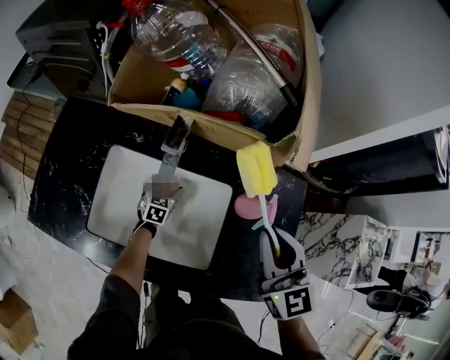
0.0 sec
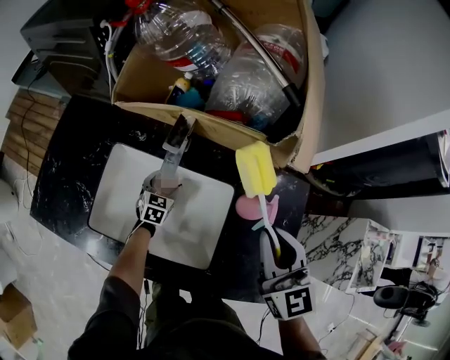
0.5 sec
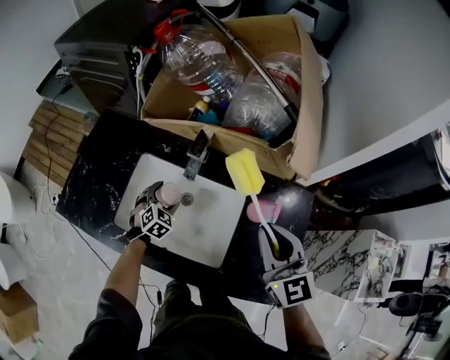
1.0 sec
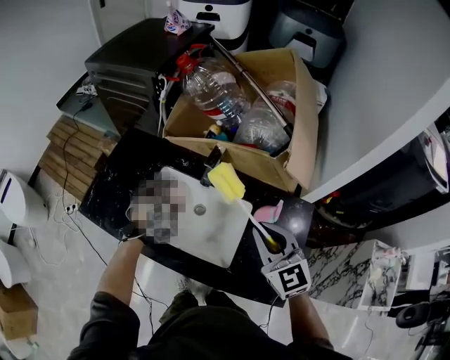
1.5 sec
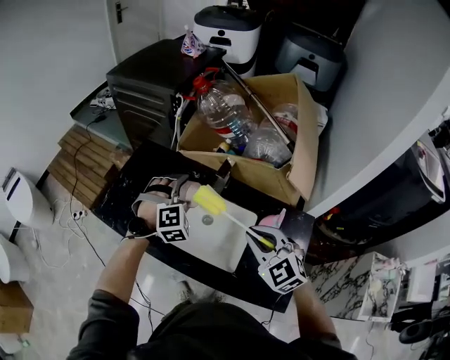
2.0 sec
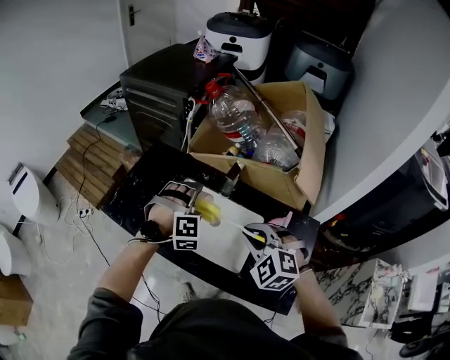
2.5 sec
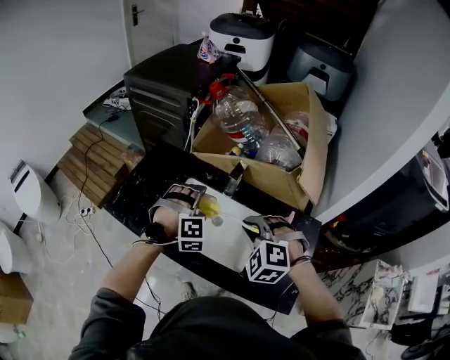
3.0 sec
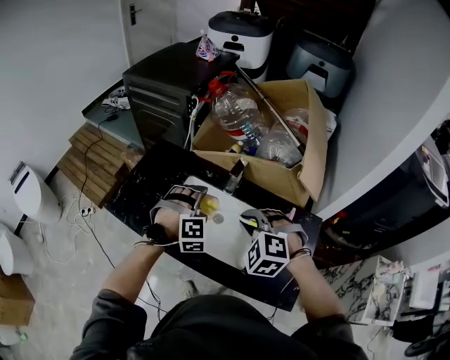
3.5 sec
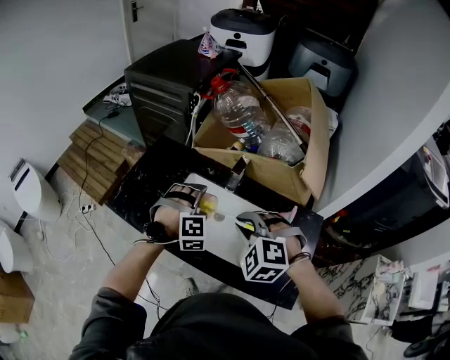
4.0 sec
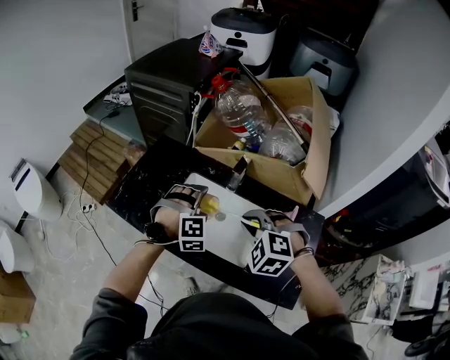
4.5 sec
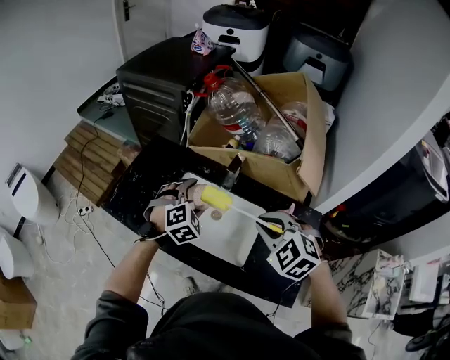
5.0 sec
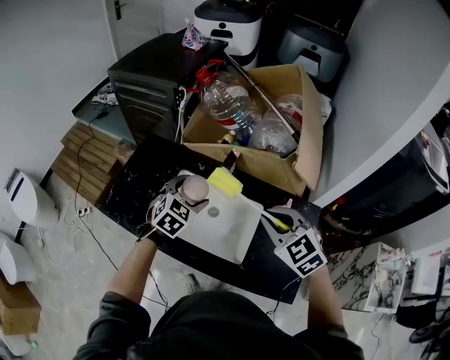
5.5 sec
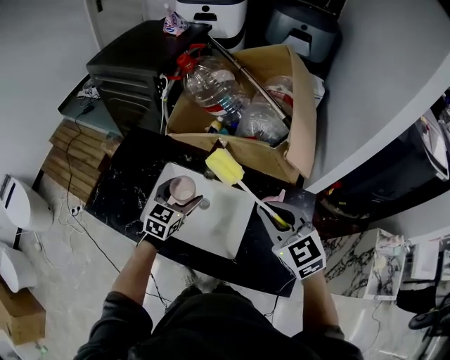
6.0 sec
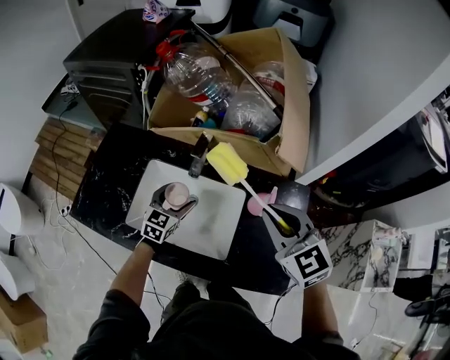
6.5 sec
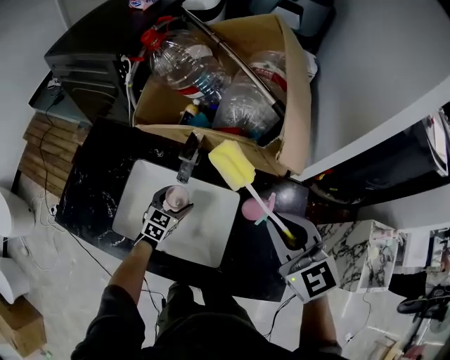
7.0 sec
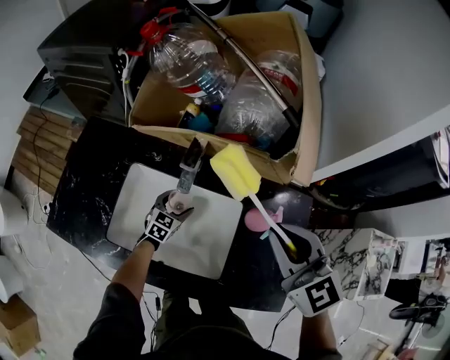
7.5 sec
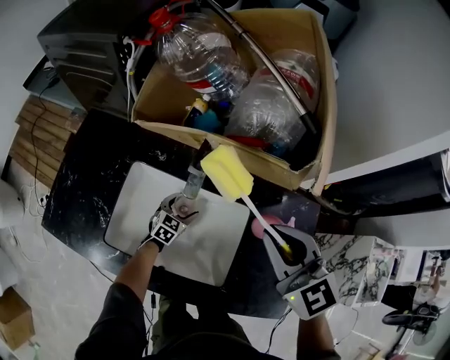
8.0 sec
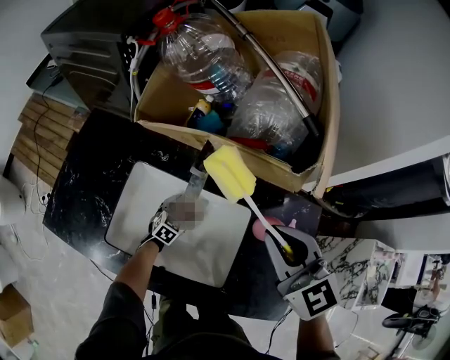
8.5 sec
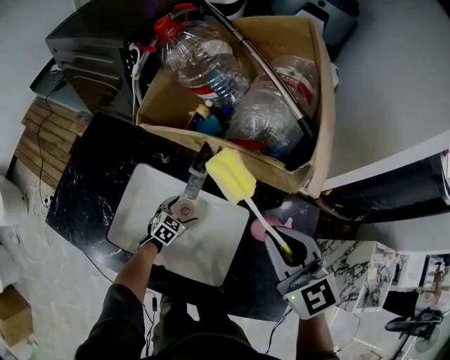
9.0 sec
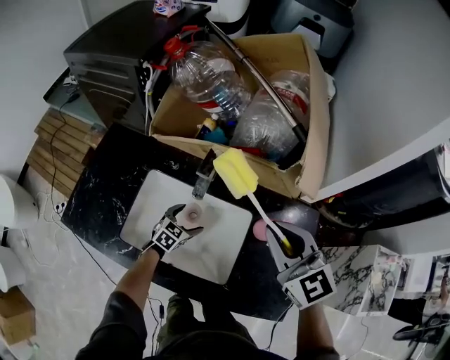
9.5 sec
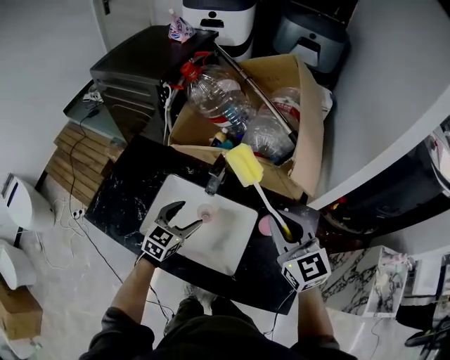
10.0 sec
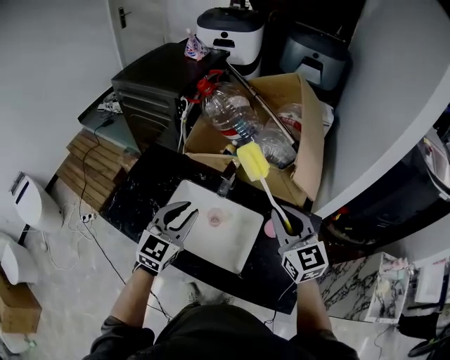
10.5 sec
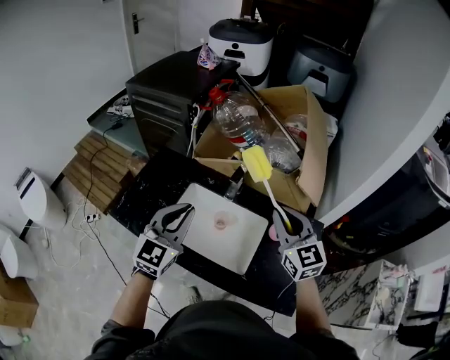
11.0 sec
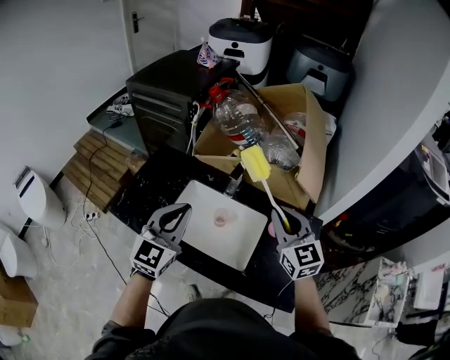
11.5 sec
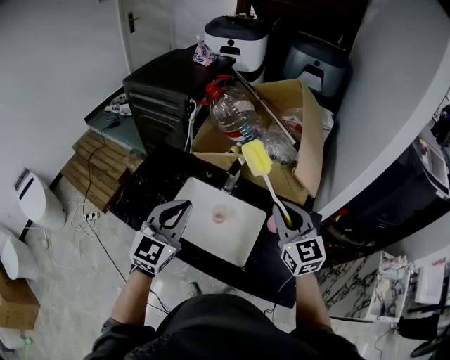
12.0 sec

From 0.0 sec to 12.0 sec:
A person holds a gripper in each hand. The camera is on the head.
From 0.0 sec to 2.0 sec: The left gripper travels upward by approximately 35 cm, and rolls clockwise, seen from behind, by some 60 degrees; the right gripper moves to the left and backward, approximately 10 cm, and turns by some 40 degrees.
From 2.0 sec to 4.0 sec: The left gripper is displaced backward by roughly 5 cm. Meanwhile the right gripper is displaced to the left by some 10 cm, and rotates approximately 30 degrees.
From 4.0 sec to 6.0 sec: The left gripper shifts by roughly 5 cm, and twists approximately 70 degrees counterclockwise, seen from behind, while the right gripper heads to the right, covering some 10 cm, and twists about 40 degrees clockwise, seen from behind.
From 6.0 sec to 8.0 sec: The right gripper shifts about 10 cm forward. Meanwhile the left gripper travels downward by about 30 cm.
From 8.0 sec to 10.0 sec: The right gripper is displaced upward by roughly 5 cm. Meanwhile the left gripper moves upward, about 25 cm.
From 10.0 sec to 12.0 sec: The left gripper goes roughly 25 cm upward and backward, changes its angle by approximately 30 degrees, and closes. The right gripper ends up roughly 5 cm from where it was.

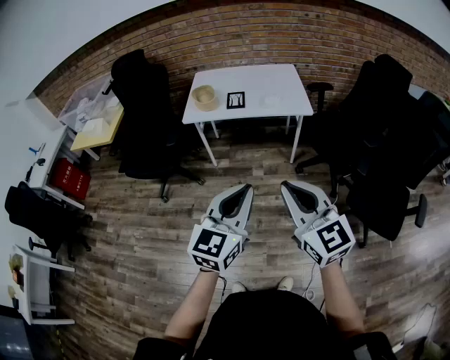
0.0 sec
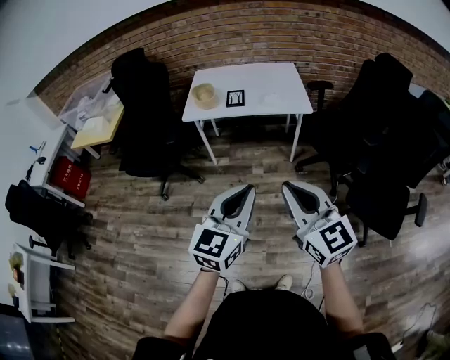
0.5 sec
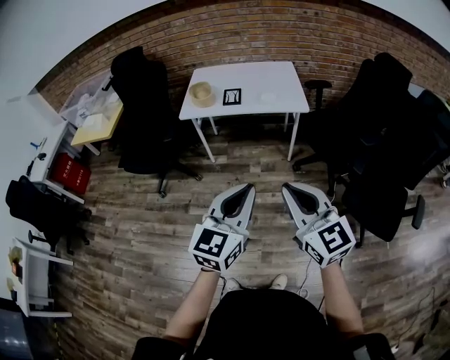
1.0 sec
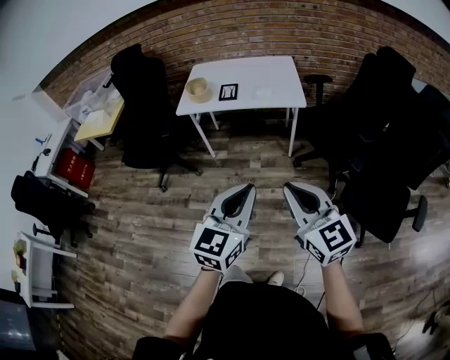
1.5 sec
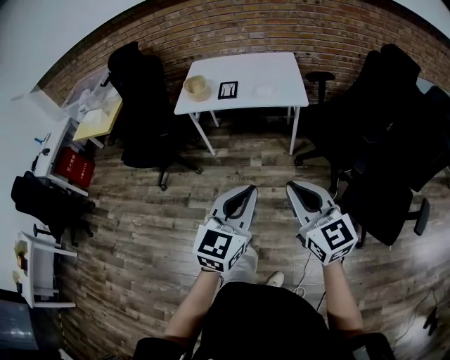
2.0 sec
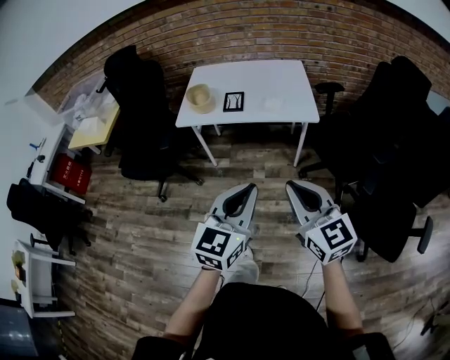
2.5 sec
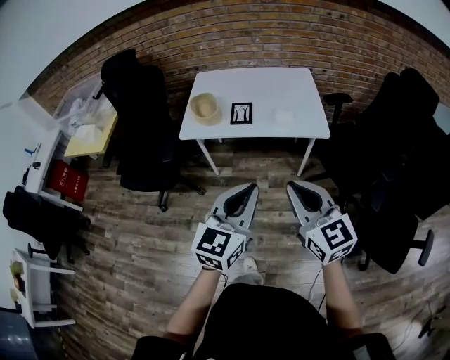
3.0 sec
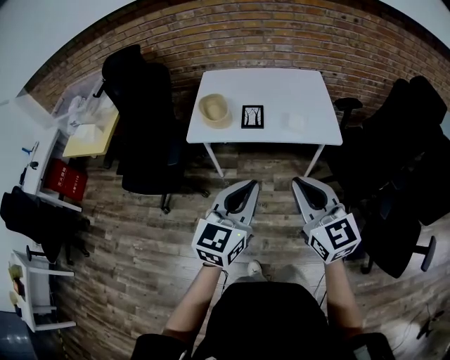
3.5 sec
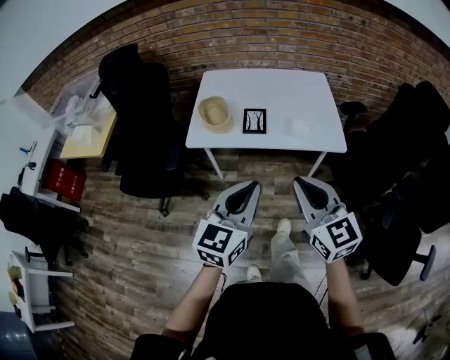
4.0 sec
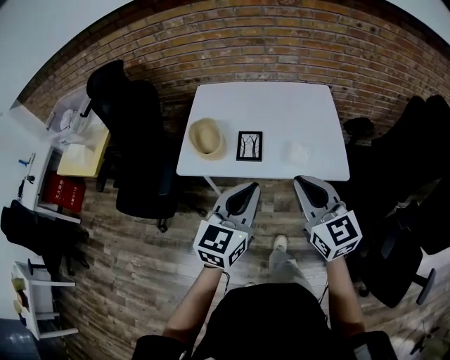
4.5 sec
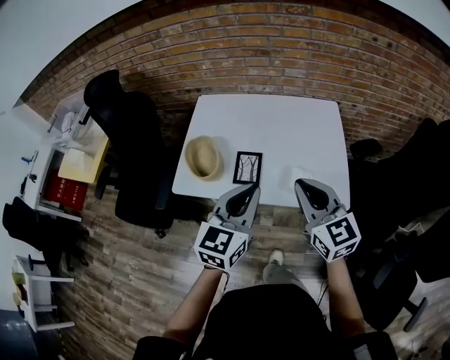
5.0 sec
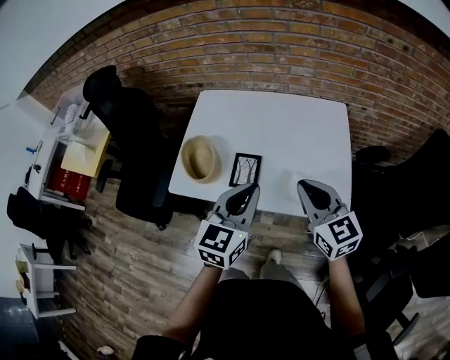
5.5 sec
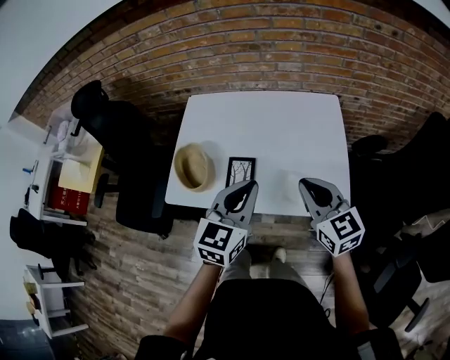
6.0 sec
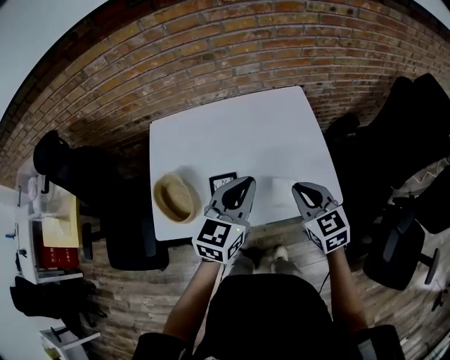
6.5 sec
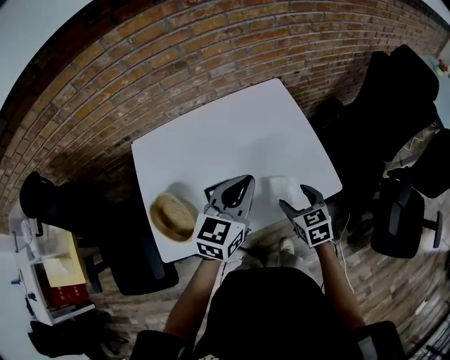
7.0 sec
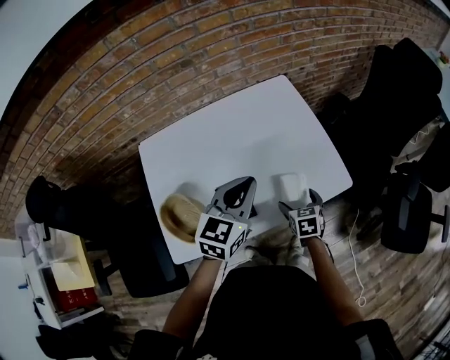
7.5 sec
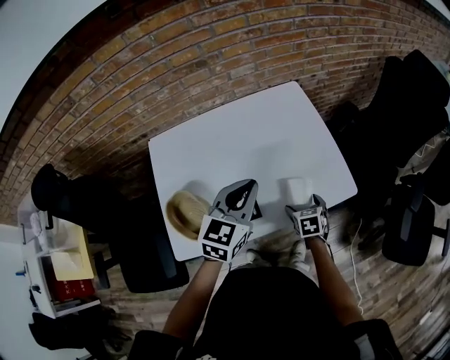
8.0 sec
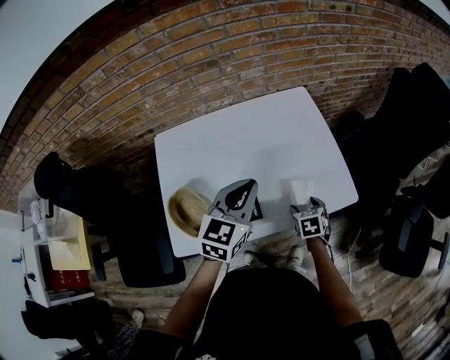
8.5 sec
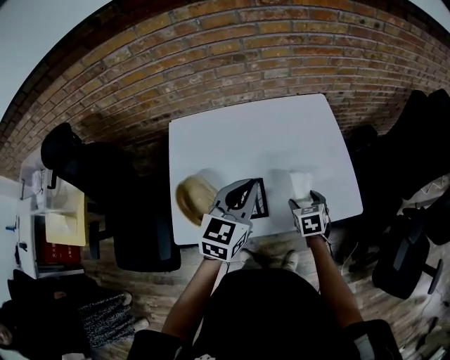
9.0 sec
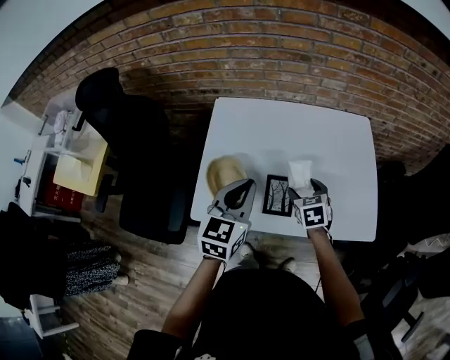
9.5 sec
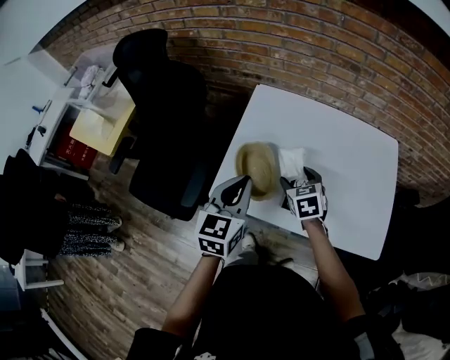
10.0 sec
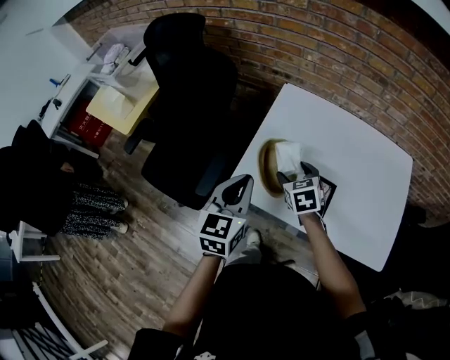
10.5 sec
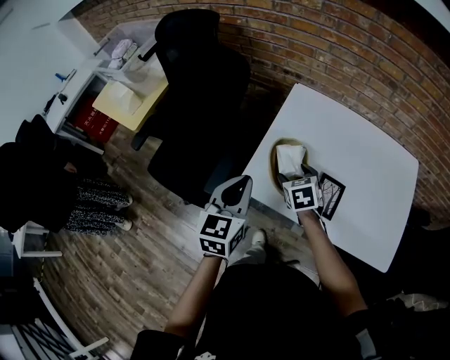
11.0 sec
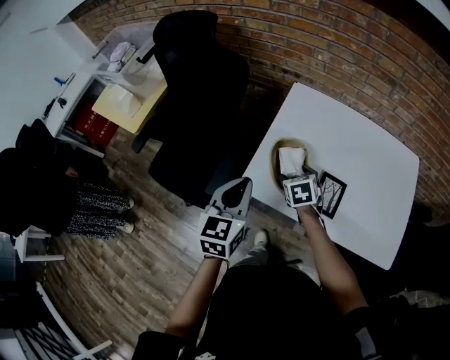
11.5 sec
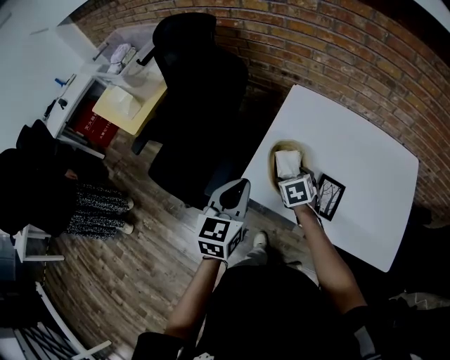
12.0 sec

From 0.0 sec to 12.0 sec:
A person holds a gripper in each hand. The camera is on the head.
From 0.0 sec to 2.0 sec: The grippers both shift to the right by roughly 10 cm.
From 2.0 sec to 4.0 sec: The grippers both shift forward and to the left by about 35 cm.
From 4.0 sec to 6.0 sec: The grippers both shift forward by roughly 30 cm.
From 6.0 sec to 8.0 sec: The left gripper moves some 10 cm, and rotates some 30 degrees; the right gripper is displaced downward by approximately 30 cm, tips its fingers downward by about 40 degrees, and opens.
From 8.0 sec to 10.0 sec: The left gripper moves about 25 cm, and rotates some 40 degrees, while the right gripper moves roughly 30 cm, and swivels some 50 degrees.
From 10.0 sec to 12.0 sec: The left gripper shifts about 10 cm to the left, while the right gripper shifts some 15 cm to the left and downward.

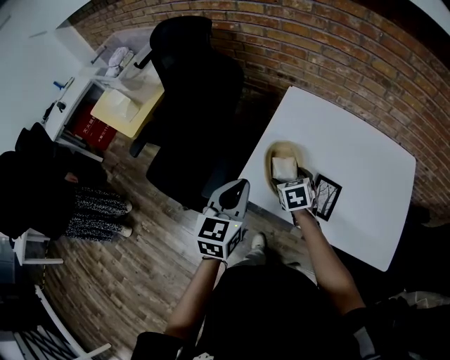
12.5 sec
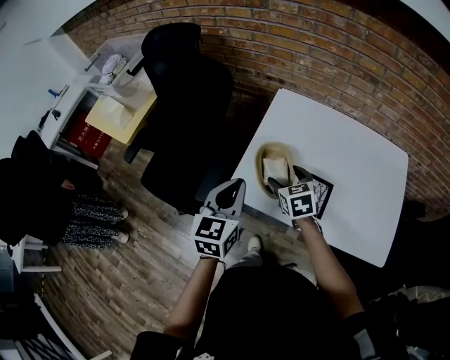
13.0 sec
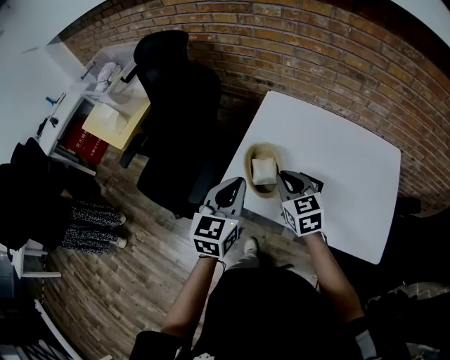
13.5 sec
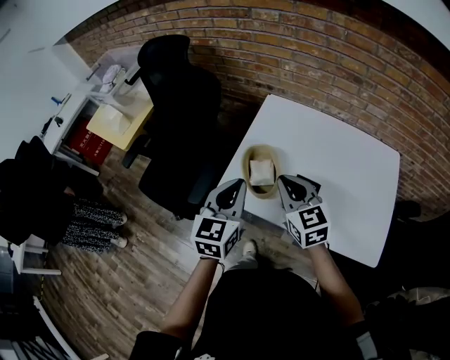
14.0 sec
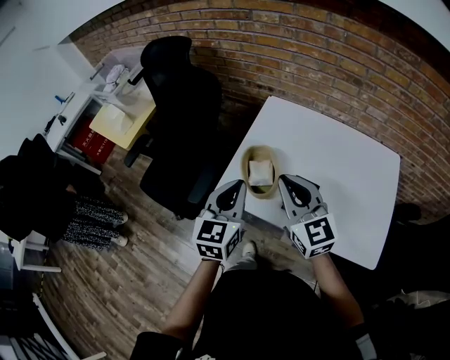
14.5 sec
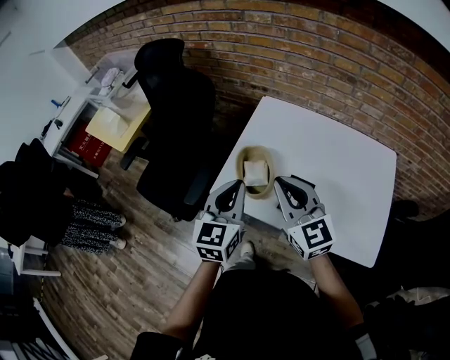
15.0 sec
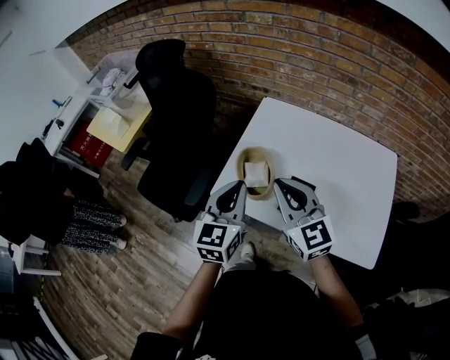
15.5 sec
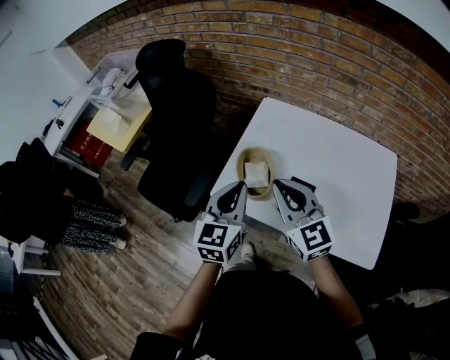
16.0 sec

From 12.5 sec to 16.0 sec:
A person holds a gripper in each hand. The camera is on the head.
From 12.5 sec to 14.5 sec: The left gripper shifts roughly 10 cm to the right. Meanwhile the right gripper moves upward, roughly 25 cm, points its fingers approximately 40 degrees further upward, and closes up.
From 14.5 sec to 16.0 sec: The grippers make only small movements.
